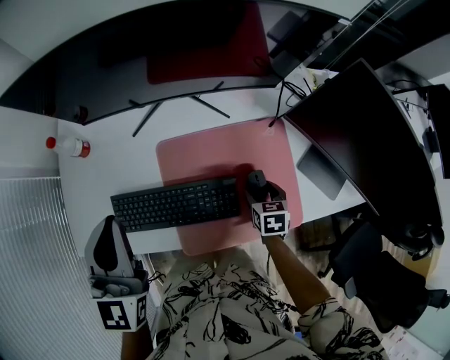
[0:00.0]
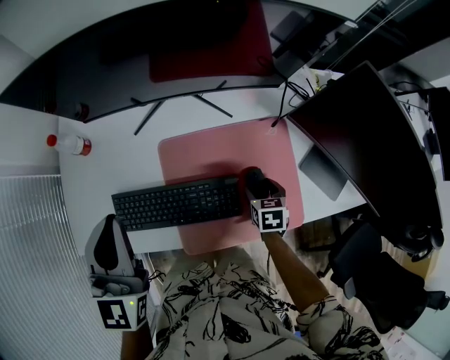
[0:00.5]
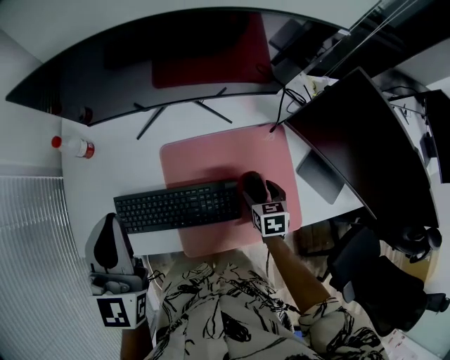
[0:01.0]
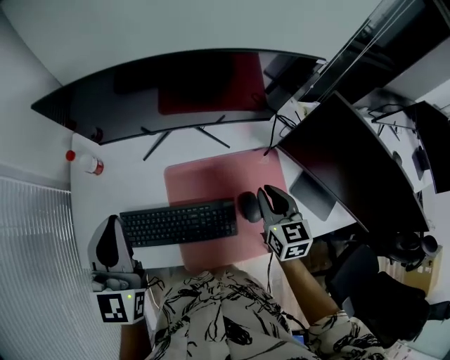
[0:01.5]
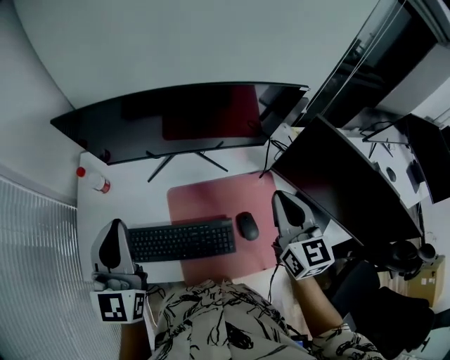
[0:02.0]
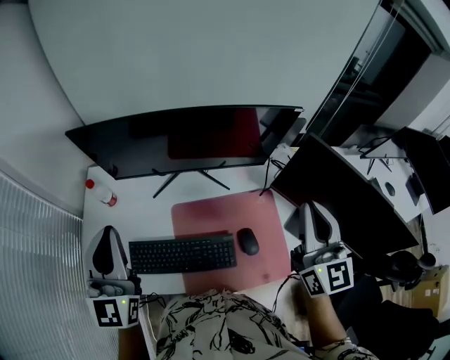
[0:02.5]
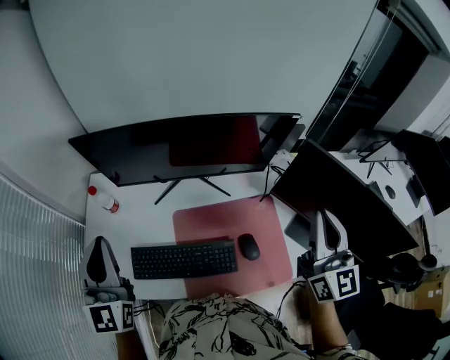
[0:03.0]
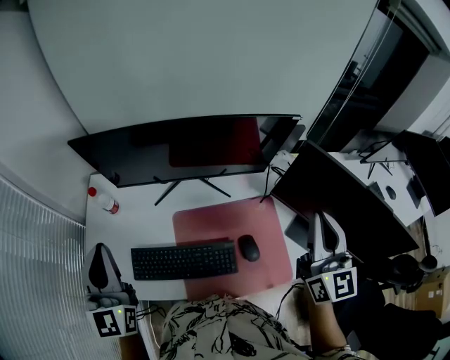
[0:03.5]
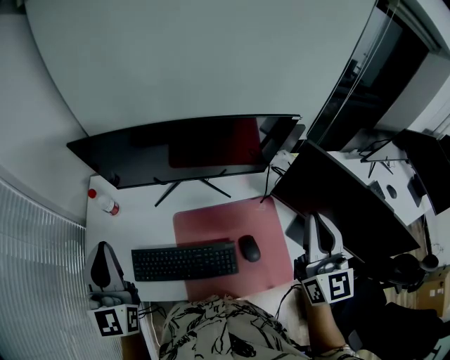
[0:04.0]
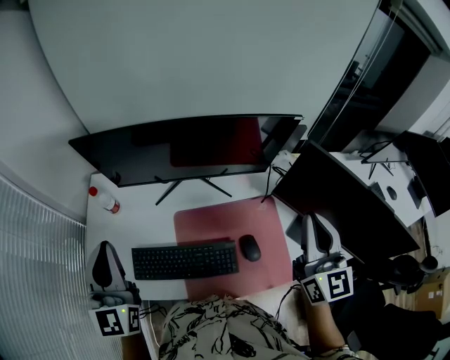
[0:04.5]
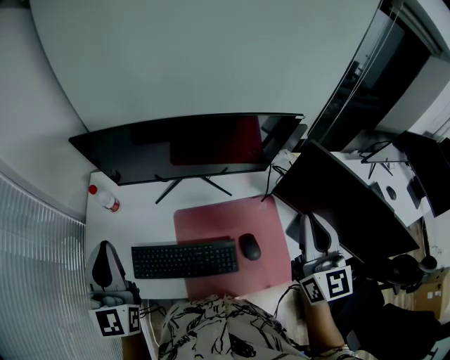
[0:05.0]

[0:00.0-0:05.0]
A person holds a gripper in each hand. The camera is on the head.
0:00.0 to 0:02.5: The left gripper travels upward by roughly 10 cm. Meanwhile the right gripper goes approximately 40 cm upward, tips its fingers upward by roughly 60 degrees, and closes.
0:02.5 to 0:05.0: The grippers move only a little.

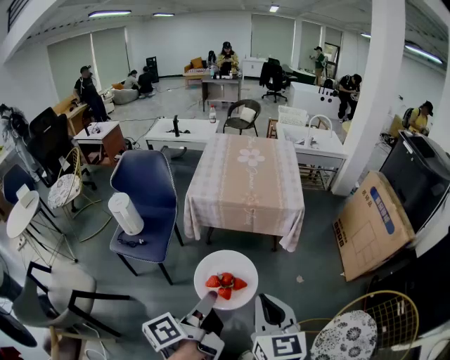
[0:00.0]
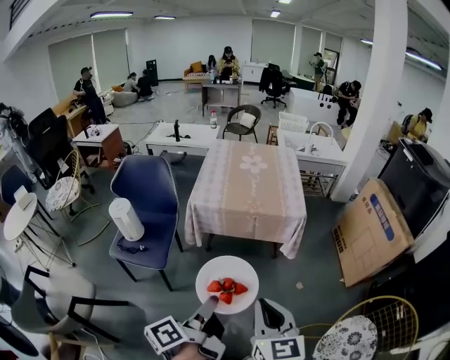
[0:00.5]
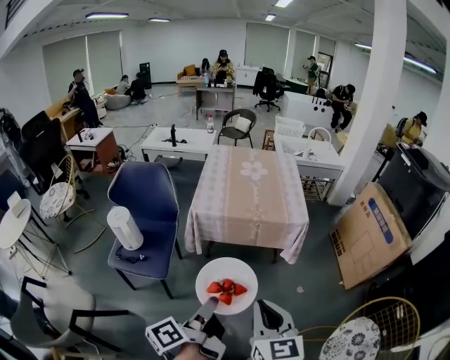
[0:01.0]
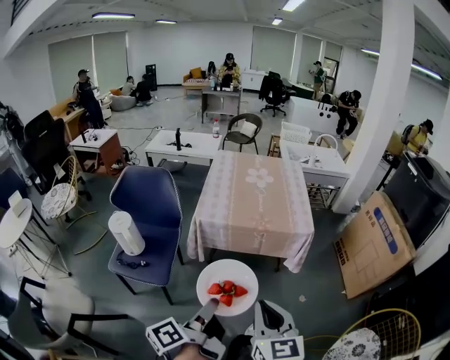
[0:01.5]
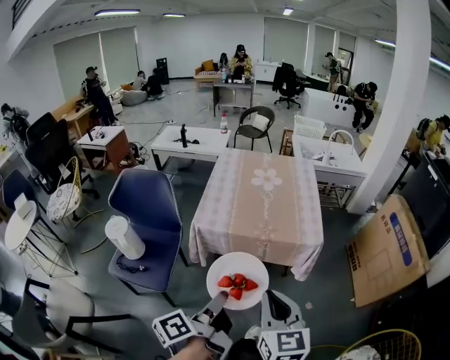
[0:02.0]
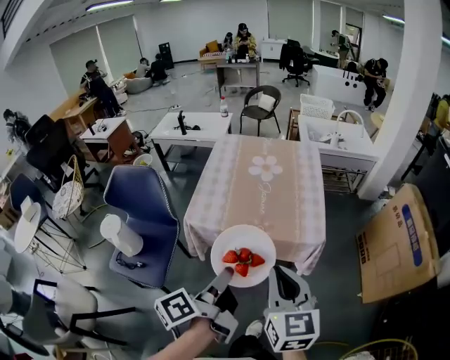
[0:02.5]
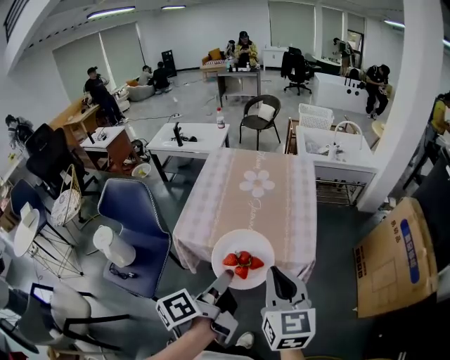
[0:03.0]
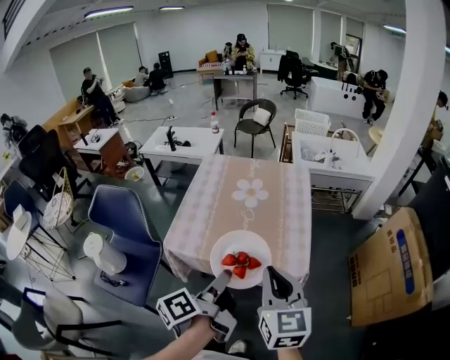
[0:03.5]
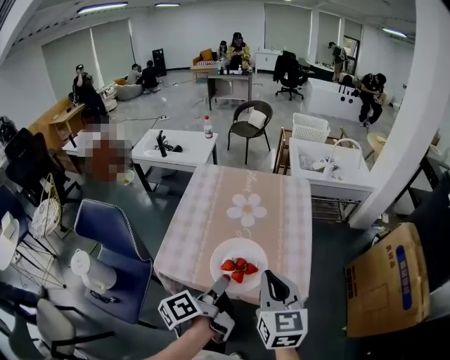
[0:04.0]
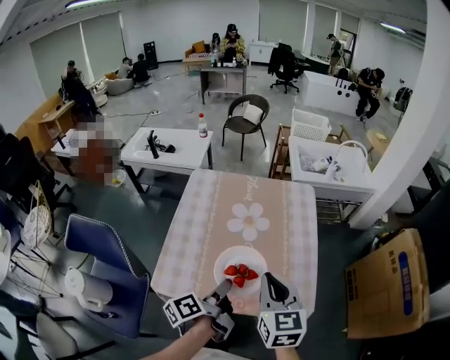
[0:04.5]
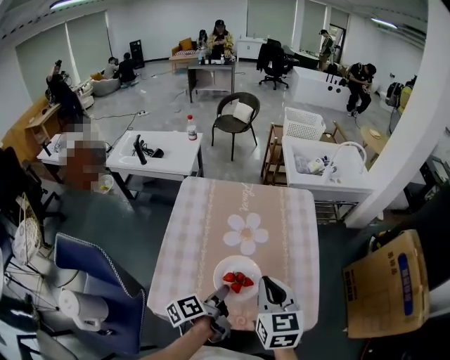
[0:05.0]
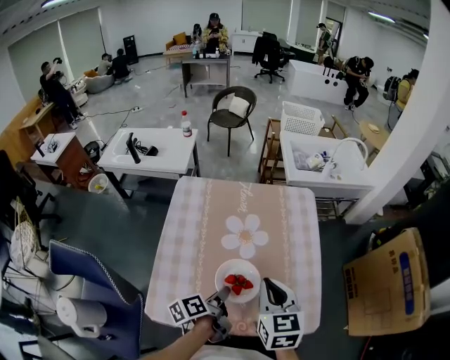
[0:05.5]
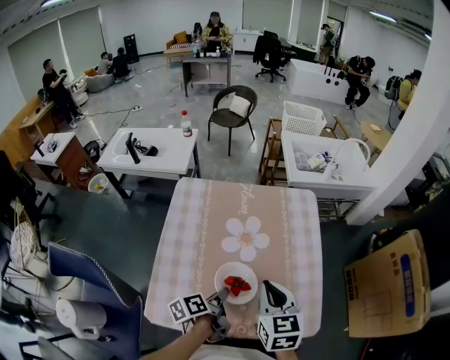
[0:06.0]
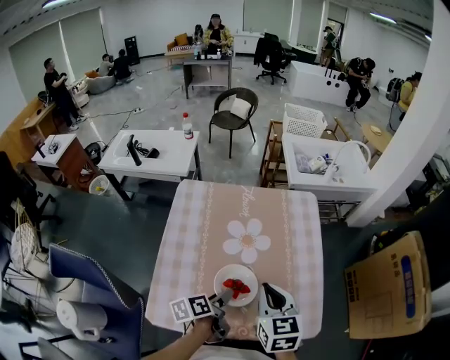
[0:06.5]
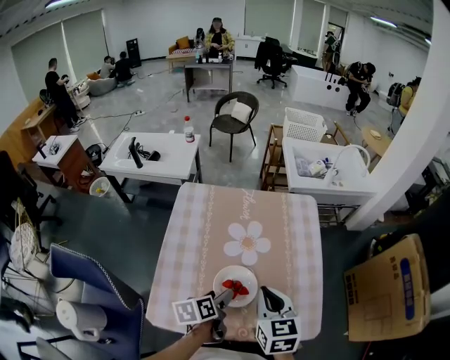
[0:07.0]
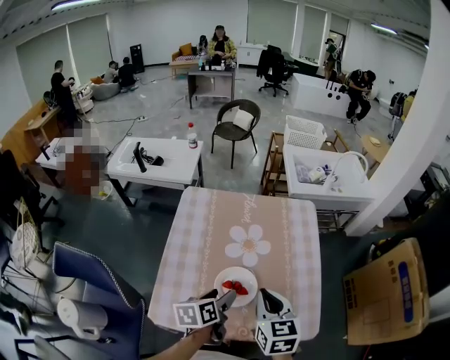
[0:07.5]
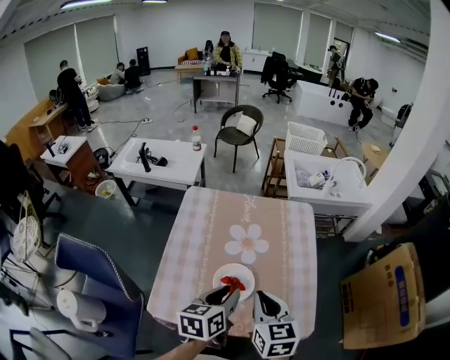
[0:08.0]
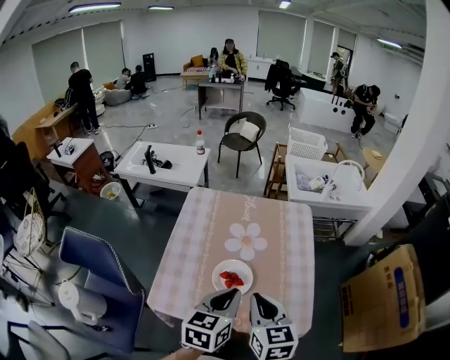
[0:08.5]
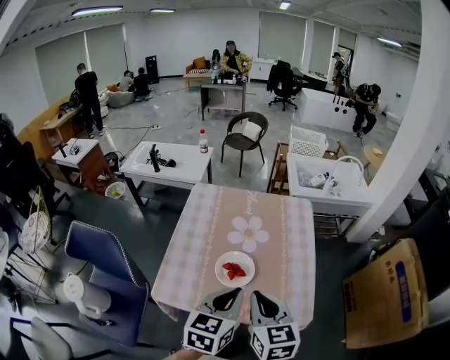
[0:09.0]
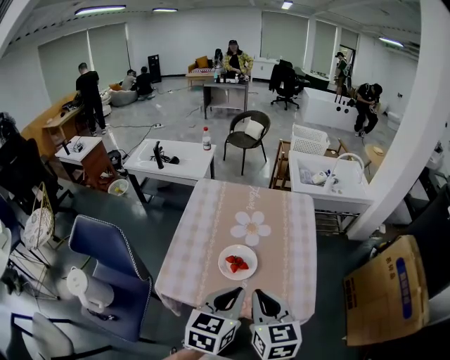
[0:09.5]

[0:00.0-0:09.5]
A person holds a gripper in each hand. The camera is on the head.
0:00.0 to 0:02.0: The grippers both shift forward by roughly 20 cm.
0:02.0 to 0:04.0: Both grippers move forward, roughly 35 cm.
0:04.0 to 0:05.5: Both grippers move forward and downward, about 20 cm. The left gripper changes its angle by some 20 degrees.
0:05.5 to 0:07.5: The left gripper rotates some 30 degrees, and opens up.
0:07.5 to 0:09.5: The left gripper goes some 20 cm upward, backward and to the right, changes its angle by approximately 40 degrees, and closes. Meanwhile the right gripper travels backward by roughly 15 cm.

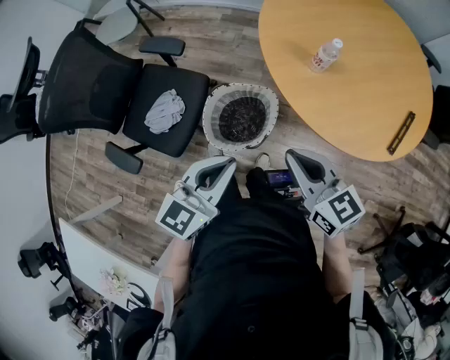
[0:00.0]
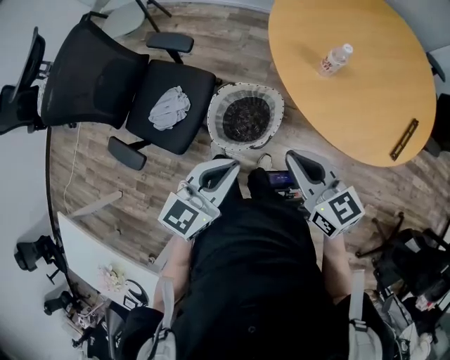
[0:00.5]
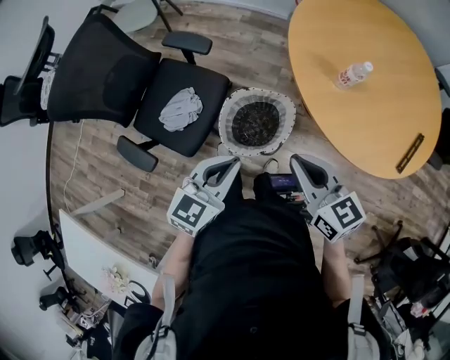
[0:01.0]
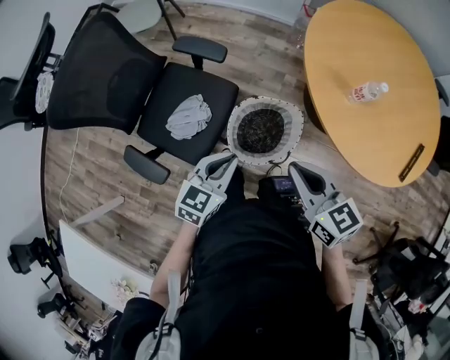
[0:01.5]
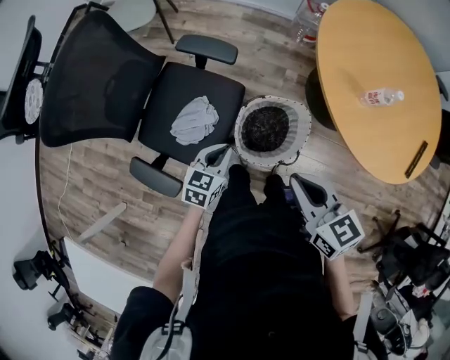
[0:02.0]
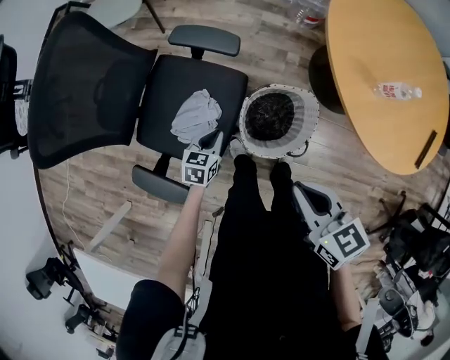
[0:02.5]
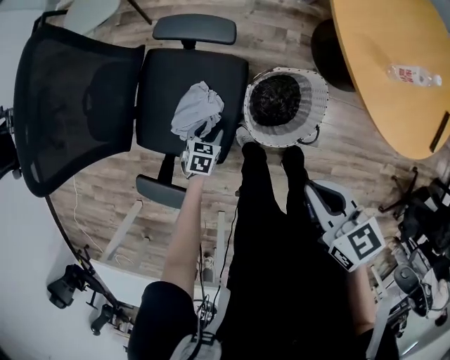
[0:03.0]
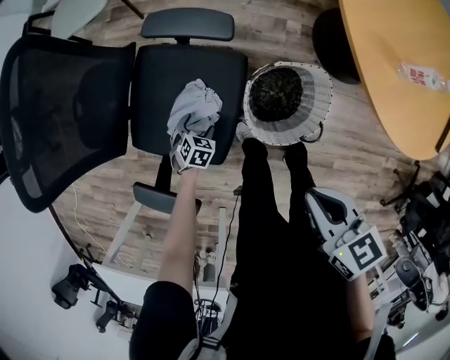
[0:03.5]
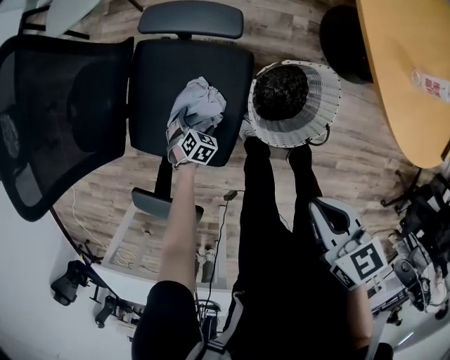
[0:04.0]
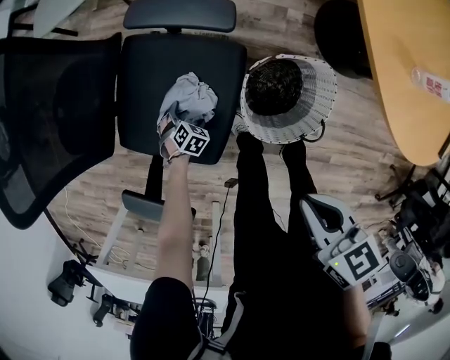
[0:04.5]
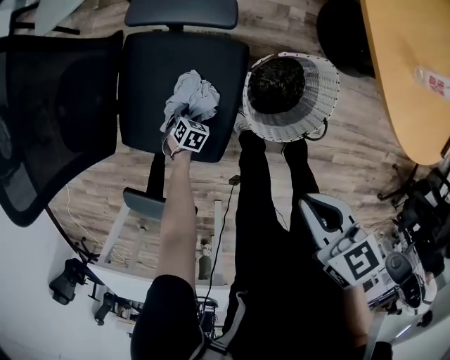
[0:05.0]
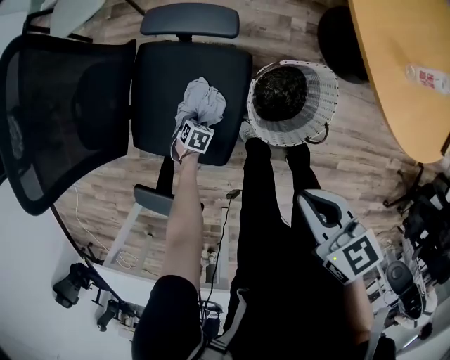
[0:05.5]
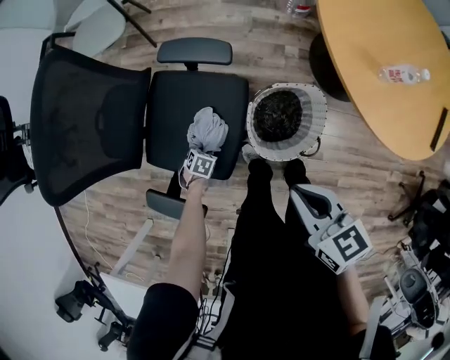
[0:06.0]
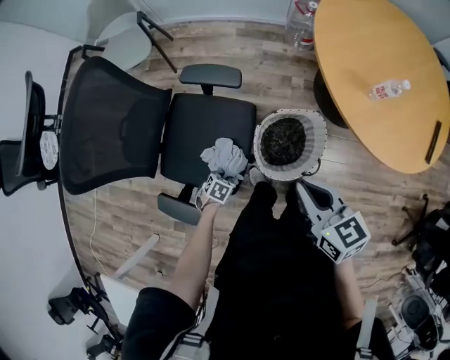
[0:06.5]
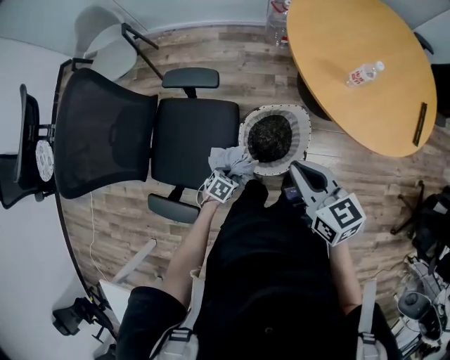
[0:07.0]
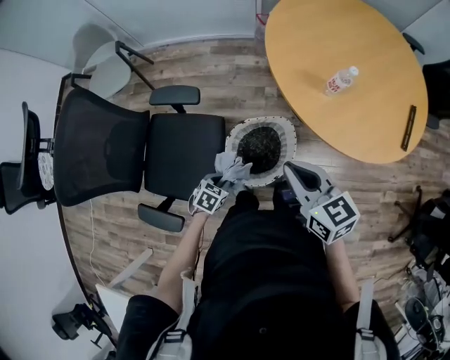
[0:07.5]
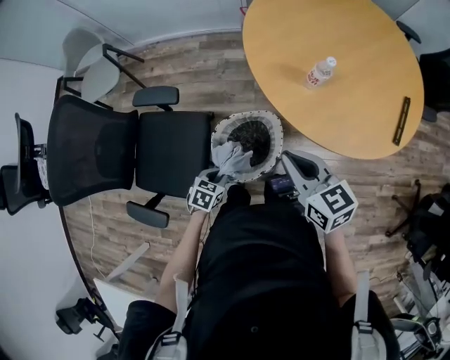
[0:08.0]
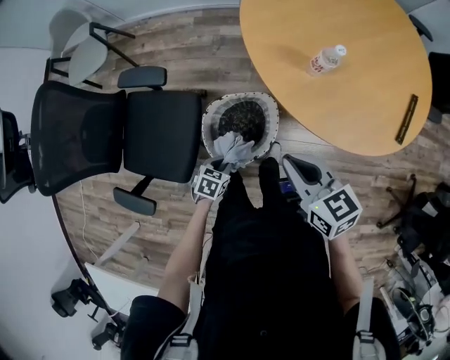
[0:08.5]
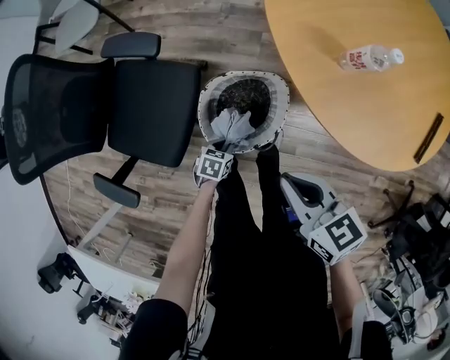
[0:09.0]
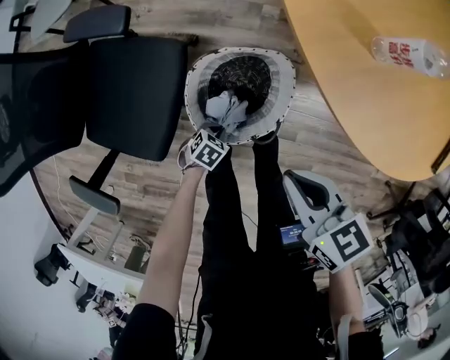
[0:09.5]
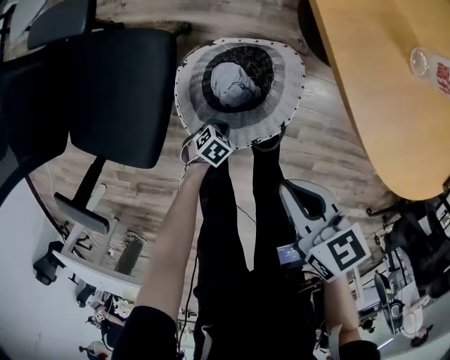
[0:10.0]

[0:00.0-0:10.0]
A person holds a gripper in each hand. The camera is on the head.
0:00.0 to 0:02.0: The right gripper shifts approximately 25 cm to the left. Meanwhile the left gripper moves to the left, downward and forward, some 35 cm, and swivels some 20 degrees.
0:02.0 to 0:04.0: The left gripper moves downward and to the left, approximately 35 cm, tilts its fingers about 40 degrees downward, and opens up. Meanwhile the right gripper goes approximately 15 cm downward and to the left, and changes its angle by some 20 degrees.
0:04.0 to 0:06.0: Both grippers move upward, approximately 5 cm. The left gripper closes up.
0:06.0 to 0:08.0: The left gripper moves approximately 35 cm; the right gripper moves roughly 25 cm.
0:08.0 to 0:10.0: Both grippers travel together downward, approximately 30 cm. The left gripper turns by approximately 20 degrees, while the right gripper rotates roughly 30 degrees.

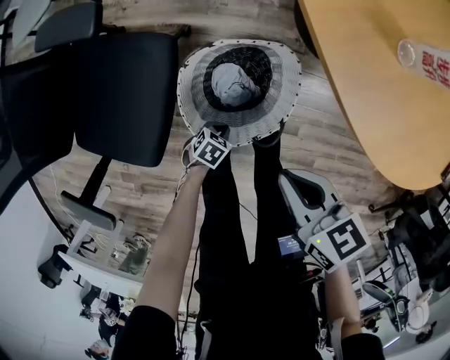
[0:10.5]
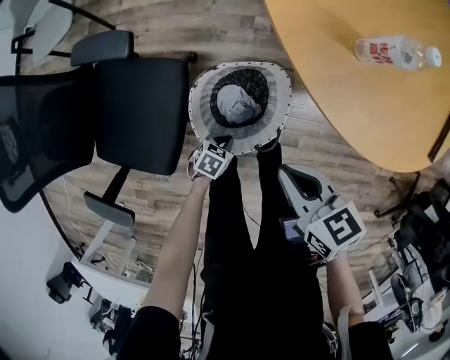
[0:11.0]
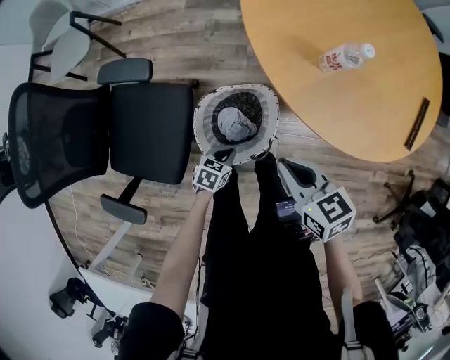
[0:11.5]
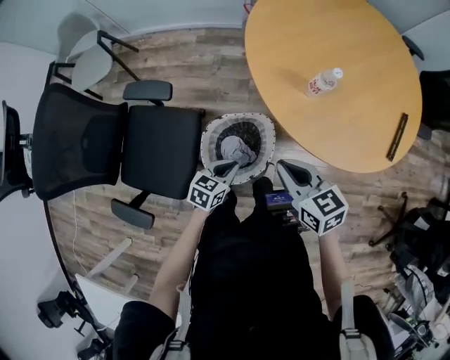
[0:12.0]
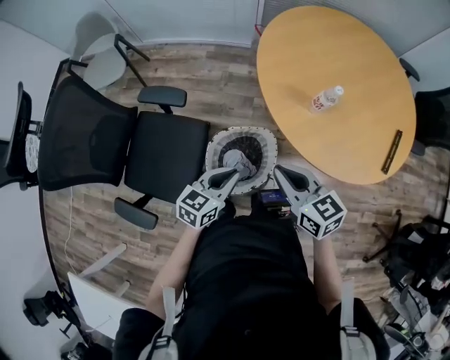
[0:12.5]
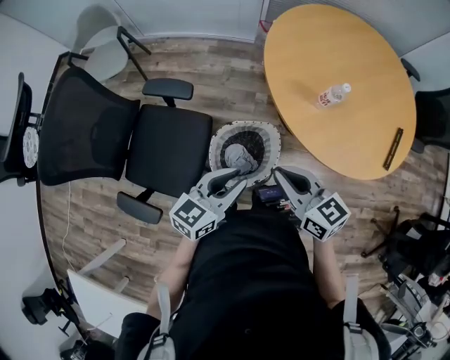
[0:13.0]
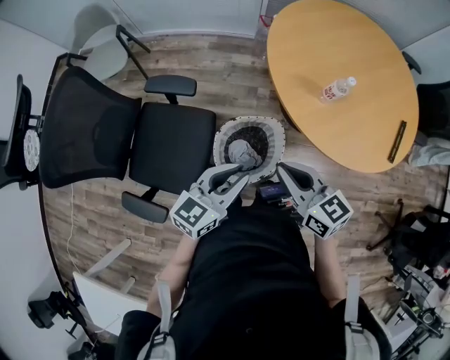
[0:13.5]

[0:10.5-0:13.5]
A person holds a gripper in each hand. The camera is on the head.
0:10.5 to 0:12.0: The right gripper heads upward, covering about 20 cm, while the left gripper is displaced upward by some 35 cm, and turns by about 30 degrees.
0:12.0 to 0:13.5: The right gripper goes approximately 10 cm to the left and upward. The left gripper shifts approximately 20 cm upward, and swivels approximately 30 degrees.
